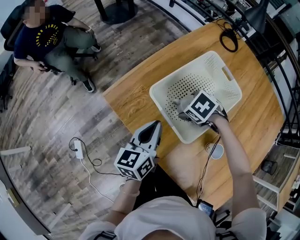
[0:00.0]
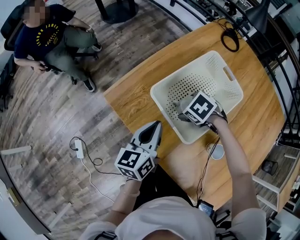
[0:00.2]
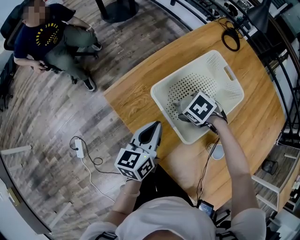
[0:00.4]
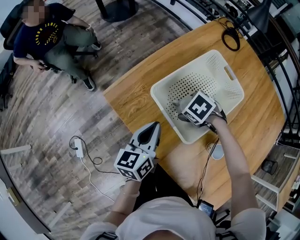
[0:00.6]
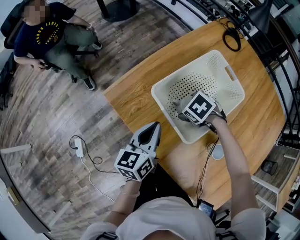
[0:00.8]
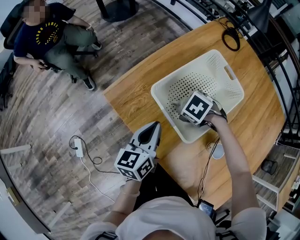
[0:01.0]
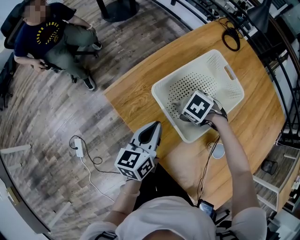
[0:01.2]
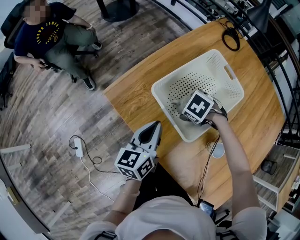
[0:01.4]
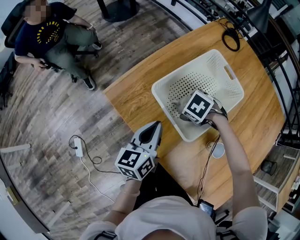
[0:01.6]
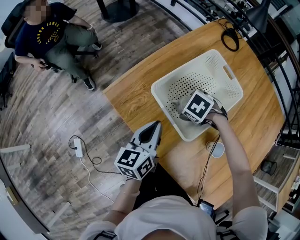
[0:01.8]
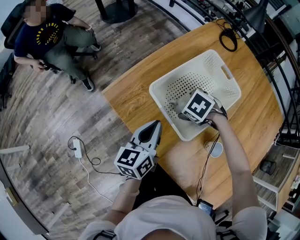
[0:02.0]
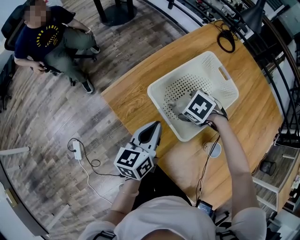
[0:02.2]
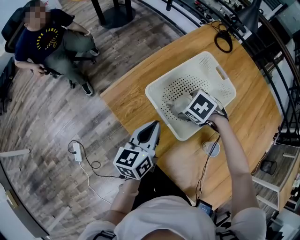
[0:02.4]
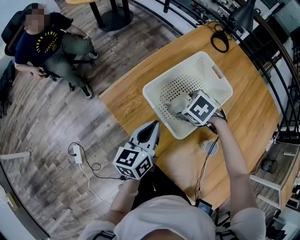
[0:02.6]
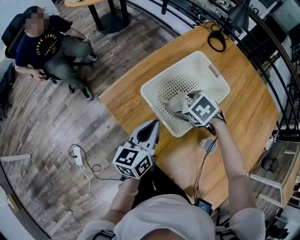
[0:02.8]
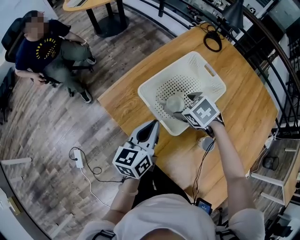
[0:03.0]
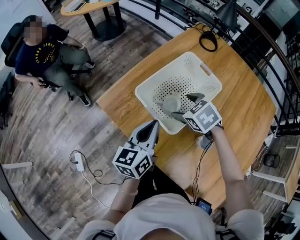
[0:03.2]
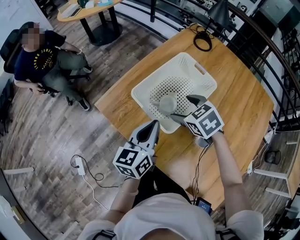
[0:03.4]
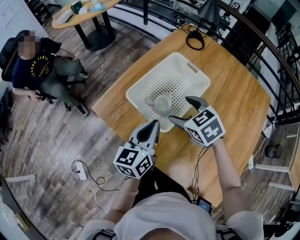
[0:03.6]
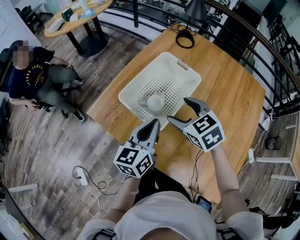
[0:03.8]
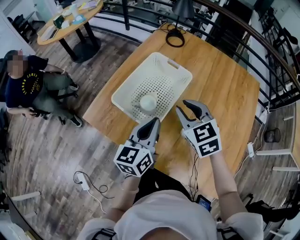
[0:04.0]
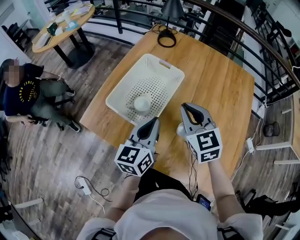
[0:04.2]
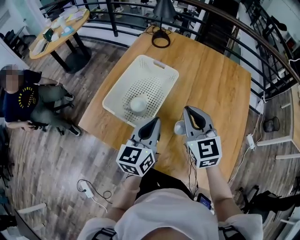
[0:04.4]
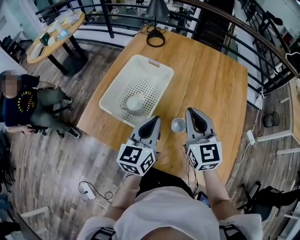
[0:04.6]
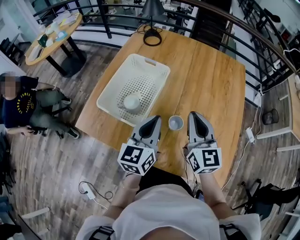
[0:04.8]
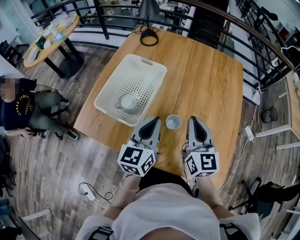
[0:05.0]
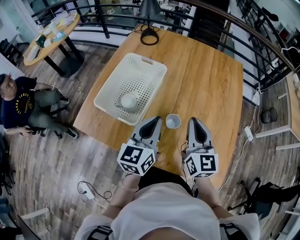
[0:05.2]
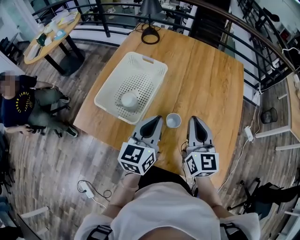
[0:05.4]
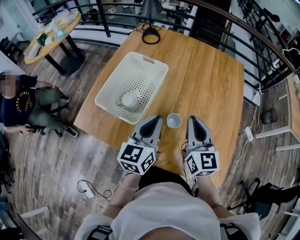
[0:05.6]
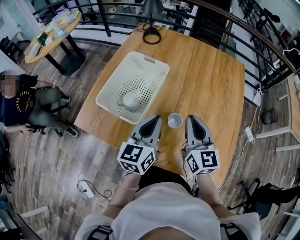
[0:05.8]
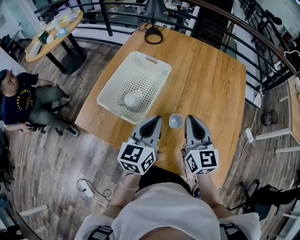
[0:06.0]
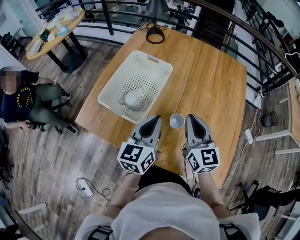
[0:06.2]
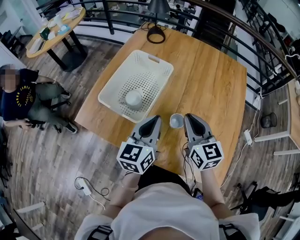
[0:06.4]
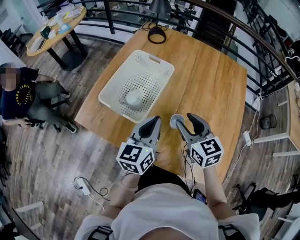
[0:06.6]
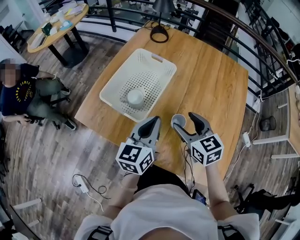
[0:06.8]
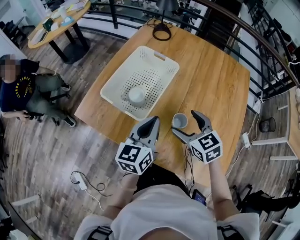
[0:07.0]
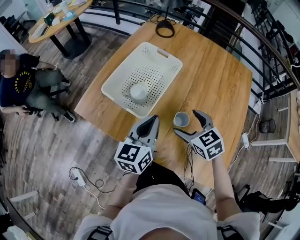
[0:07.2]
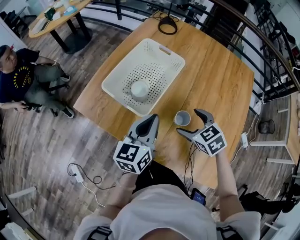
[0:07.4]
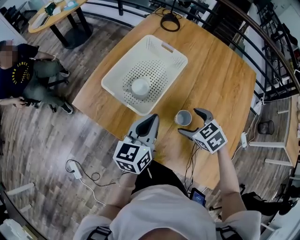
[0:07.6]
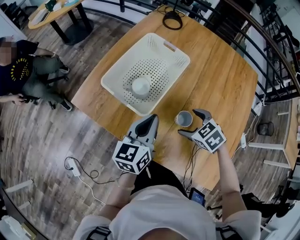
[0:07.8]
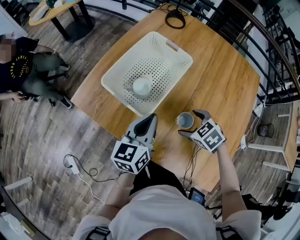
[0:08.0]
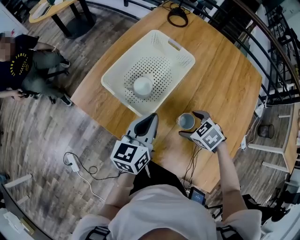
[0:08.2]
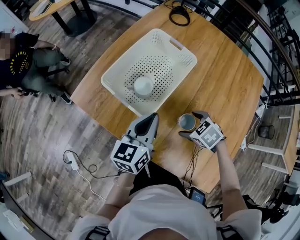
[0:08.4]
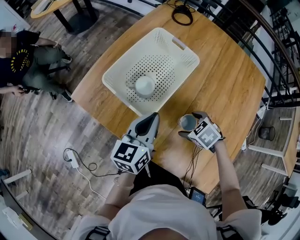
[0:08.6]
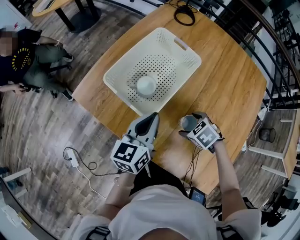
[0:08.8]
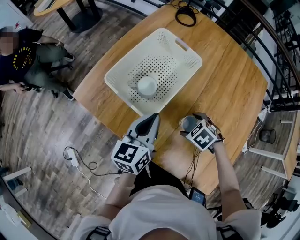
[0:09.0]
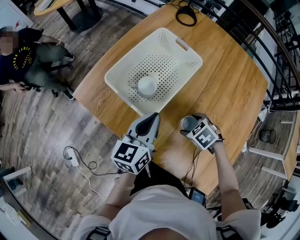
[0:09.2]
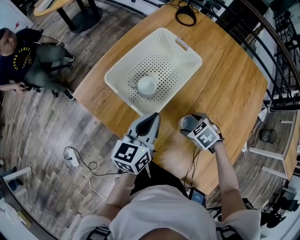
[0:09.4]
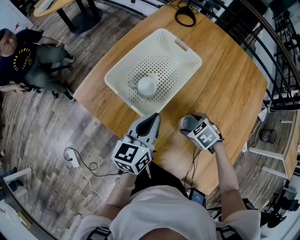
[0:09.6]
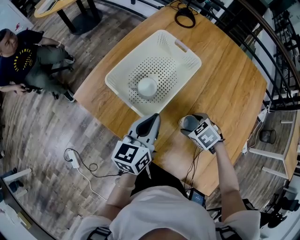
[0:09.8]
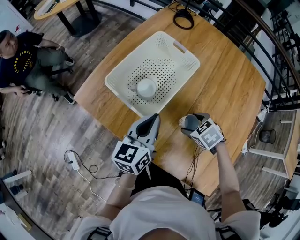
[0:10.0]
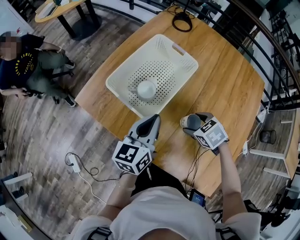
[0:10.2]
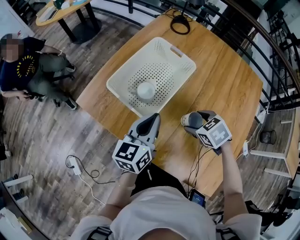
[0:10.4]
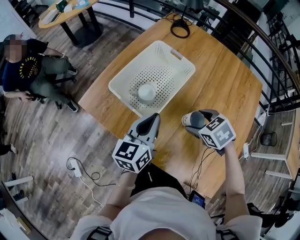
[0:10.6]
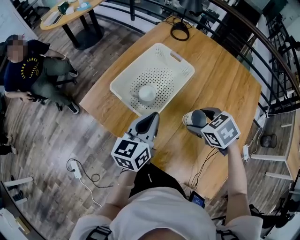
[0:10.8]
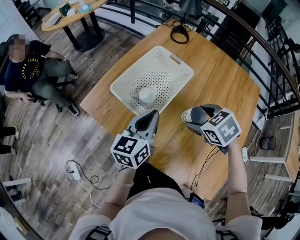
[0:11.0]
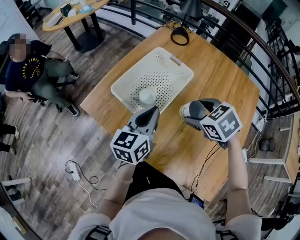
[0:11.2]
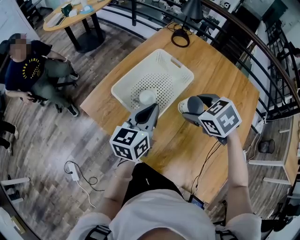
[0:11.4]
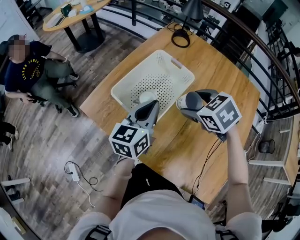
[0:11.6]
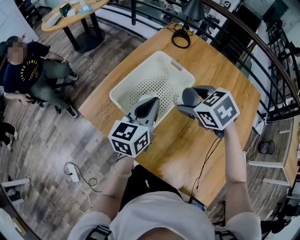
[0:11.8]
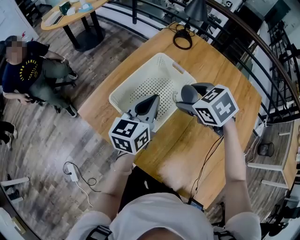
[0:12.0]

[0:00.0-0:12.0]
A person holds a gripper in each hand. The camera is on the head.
0:00.0 to 0:01.6: There are only small adjustments of the grippers.
0:01.6 to 0:03.0: The left gripper moves some 5 cm. Meanwhile the right gripper moves upward, roughly 10 cm, and rotates approximately 20 degrees.
0:03.0 to 0:04.4: The right gripper moves approximately 25 cm, tilts its fingers approximately 50 degrees upward, and closes its fingers, while the left gripper shifts by approximately 15 cm, and turns by some 20 degrees.
0:04.4 to 0:06.0: The right gripper is displaced to the right by approximately 5 cm, and rotates about 20 degrees.
0:06.0 to 0:07.6: The right gripper goes about 15 cm downward, angles its fingers downward, by approximately 50 degrees, and opens; the left gripper shifts by some 5 cm.
0:07.6 to 0:09.0: The right gripper travels downward by some 10 cm, and swivels roughly 20 degrees.
0:09.0 to 0:10.4: The right gripper goes about 10 cm upward.
0:10.4 to 0:12.0: The right gripper moves forward and upward, approximately 20 cm, while the left gripper goes about 10 cm forward and upward.

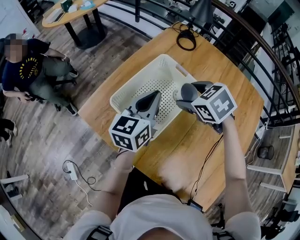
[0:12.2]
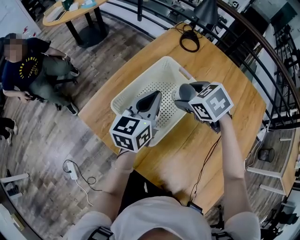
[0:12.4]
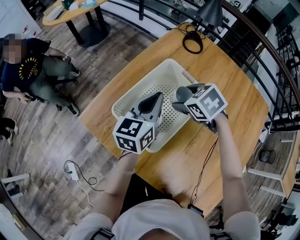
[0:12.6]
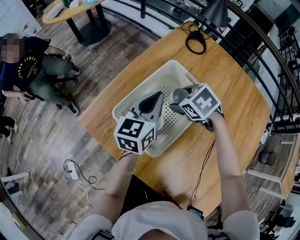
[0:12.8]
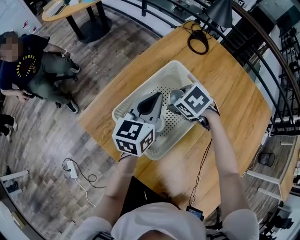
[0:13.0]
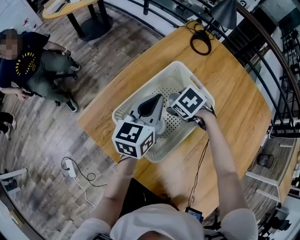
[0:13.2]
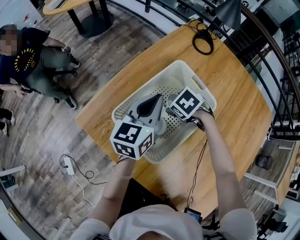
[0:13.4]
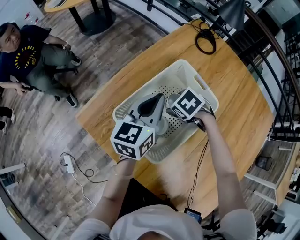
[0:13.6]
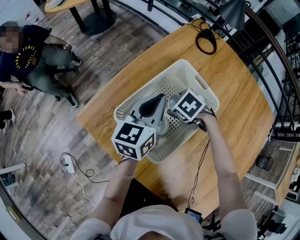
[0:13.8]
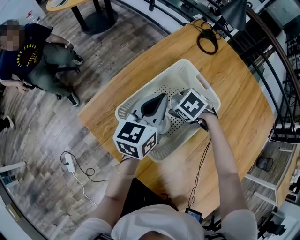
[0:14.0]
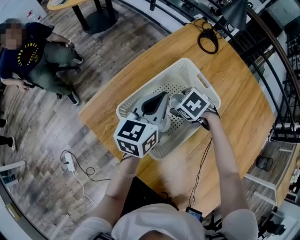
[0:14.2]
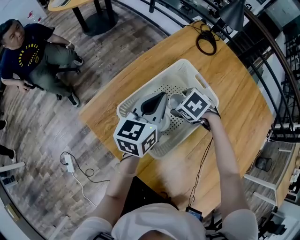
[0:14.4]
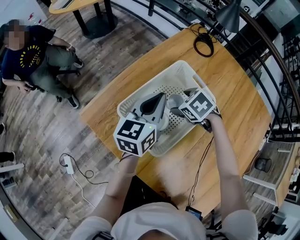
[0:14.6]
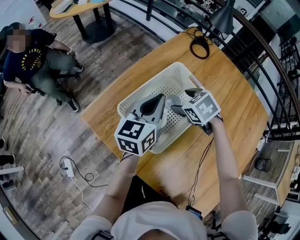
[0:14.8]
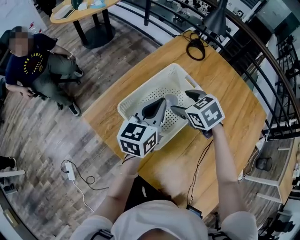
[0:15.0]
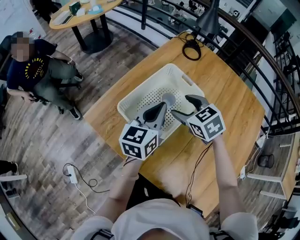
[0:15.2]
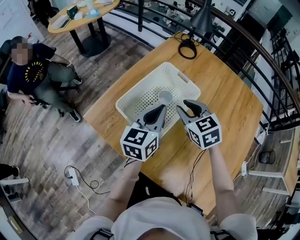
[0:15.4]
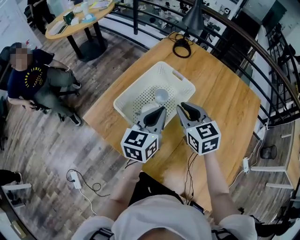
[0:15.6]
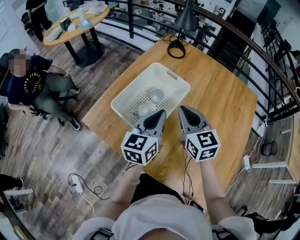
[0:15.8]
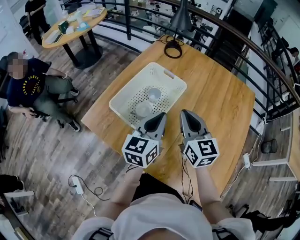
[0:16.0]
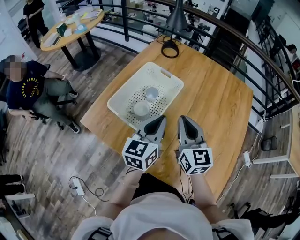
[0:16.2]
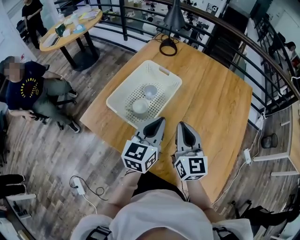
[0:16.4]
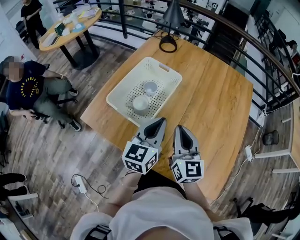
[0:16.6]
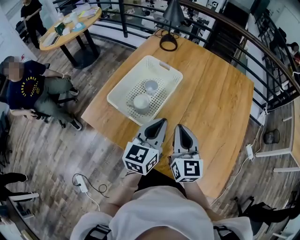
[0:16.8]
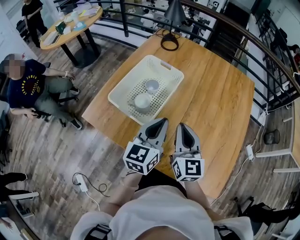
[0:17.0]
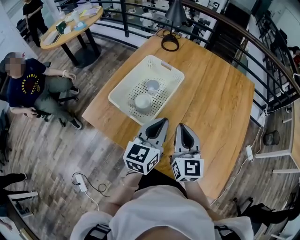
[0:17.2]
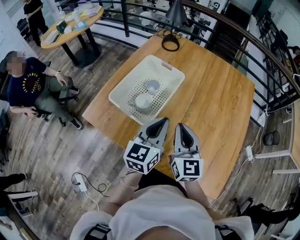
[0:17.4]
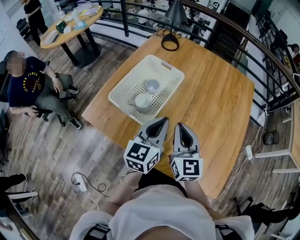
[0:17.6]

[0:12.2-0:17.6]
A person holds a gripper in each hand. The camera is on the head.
0:12.2 to 0:13.6: The right gripper heads downward, covering approximately 20 cm, and swivels approximately 20 degrees; the left gripper ends up about 10 cm from where it was.
0:13.6 to 0:15.0: The left gripper moves some 5 cm; the right gripper shifts approximately 15 cm upward, and turns by roughly 30 degrees.
0:15.0 to 0:16.2: The left gripper shifts some 15 cm backward and to the right; the right gripper goes approximately 20 cm backward, upward and to the right, angles its fingers upward, by some 50 degrees, and closes up.
0:16.2 to 0:17.6: The right gripper goes some 5 cm backward.

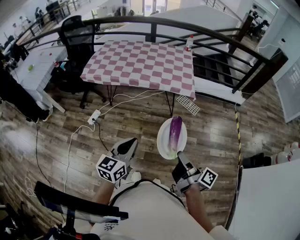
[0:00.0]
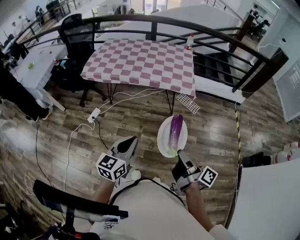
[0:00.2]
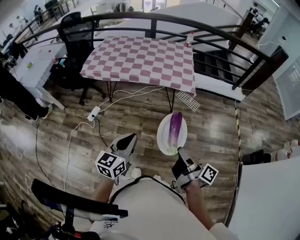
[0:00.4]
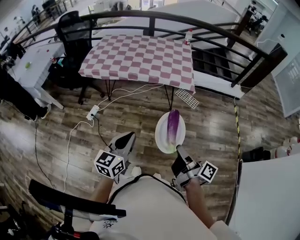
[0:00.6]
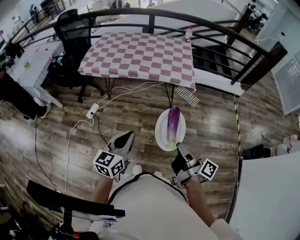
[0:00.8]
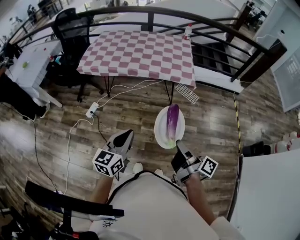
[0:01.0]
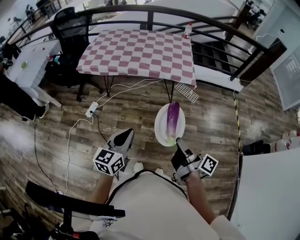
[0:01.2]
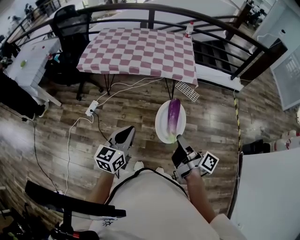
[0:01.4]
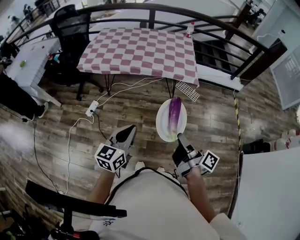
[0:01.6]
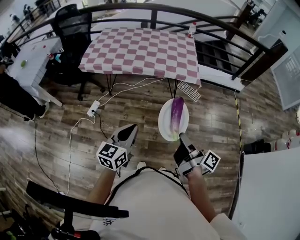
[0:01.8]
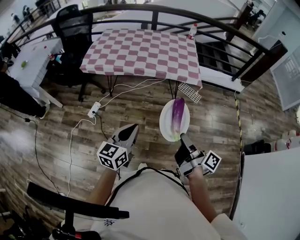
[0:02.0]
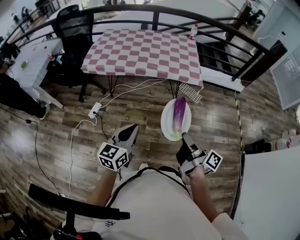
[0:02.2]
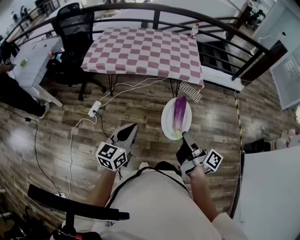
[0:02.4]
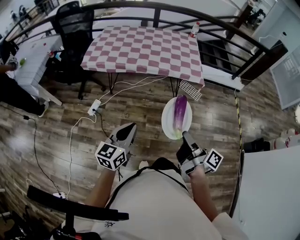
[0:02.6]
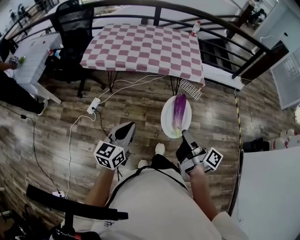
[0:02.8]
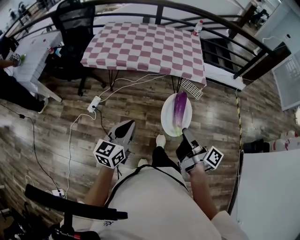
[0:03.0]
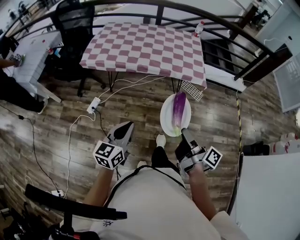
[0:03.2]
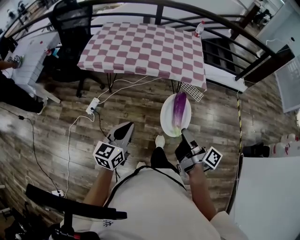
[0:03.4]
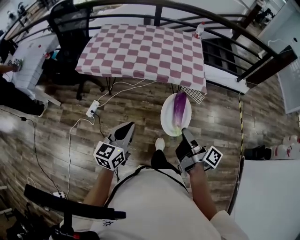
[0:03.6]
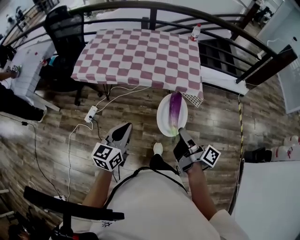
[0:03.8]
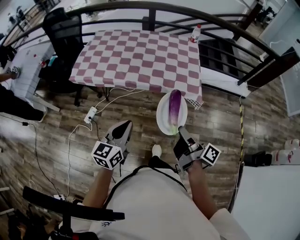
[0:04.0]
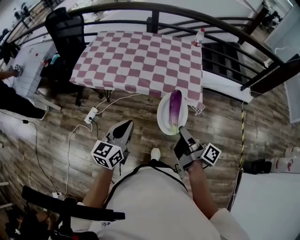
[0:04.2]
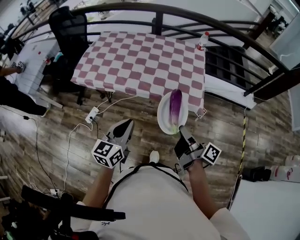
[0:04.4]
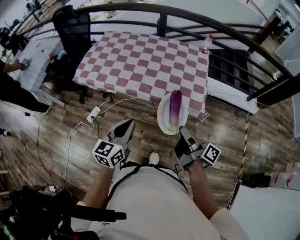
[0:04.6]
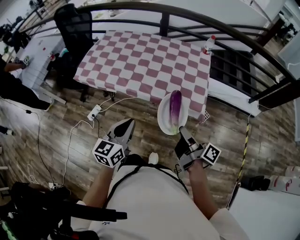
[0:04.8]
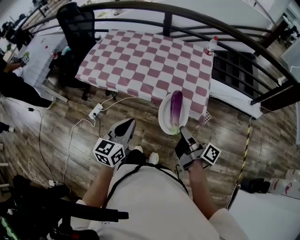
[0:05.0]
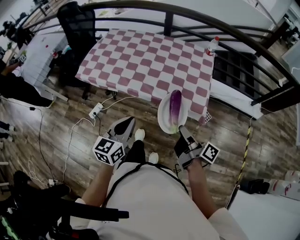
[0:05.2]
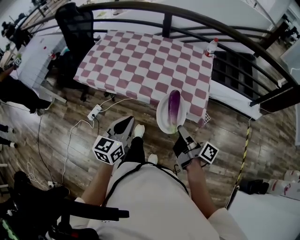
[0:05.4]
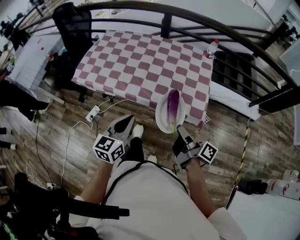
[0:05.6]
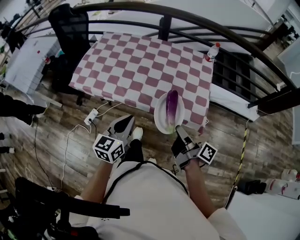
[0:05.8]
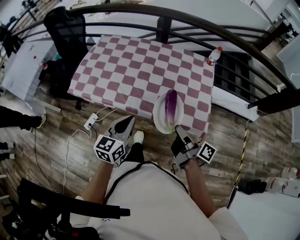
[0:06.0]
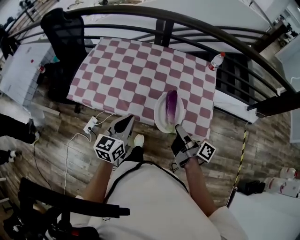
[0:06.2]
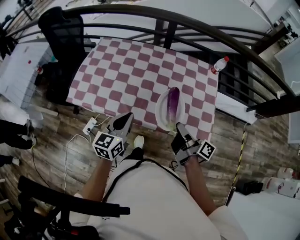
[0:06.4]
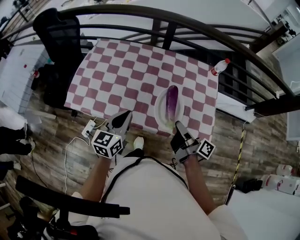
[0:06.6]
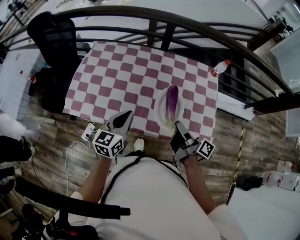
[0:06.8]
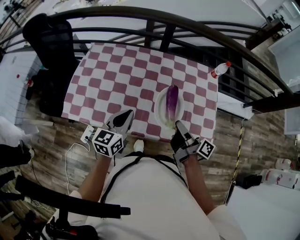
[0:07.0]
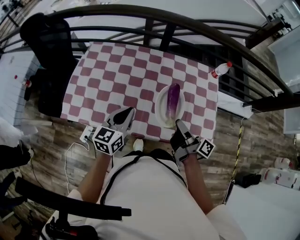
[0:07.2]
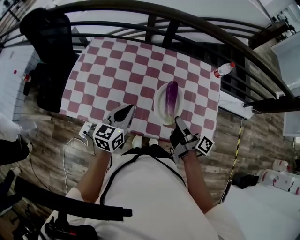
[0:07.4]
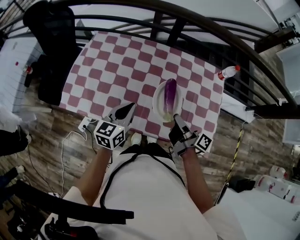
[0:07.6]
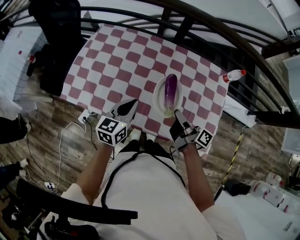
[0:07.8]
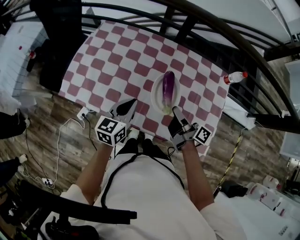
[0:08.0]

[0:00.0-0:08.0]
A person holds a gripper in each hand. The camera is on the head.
0:00.0 to 0:01.6: The left gripper ends up roughly 10 cm from where it was.
0:01.6 to 0:03.2: The left gripper shifts by approximately 10 cm.
0:03.2 to 0:04.8: The left gripper shifts by approximately 30 cm.
0:04.8 to 0:06.4: The left gripper moves some 30 cm.
0:06.4 to 0:08.0: The left gripper moves some 15 cm.
